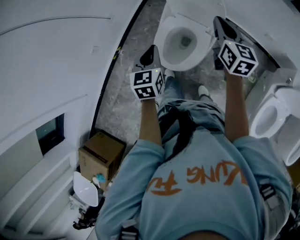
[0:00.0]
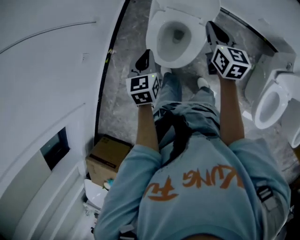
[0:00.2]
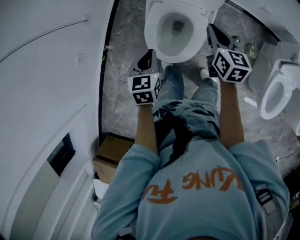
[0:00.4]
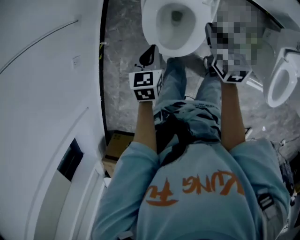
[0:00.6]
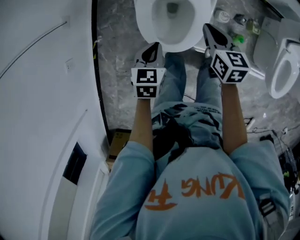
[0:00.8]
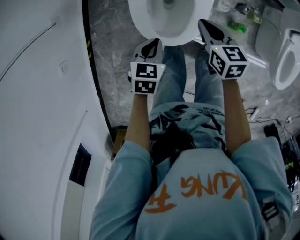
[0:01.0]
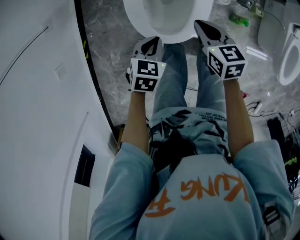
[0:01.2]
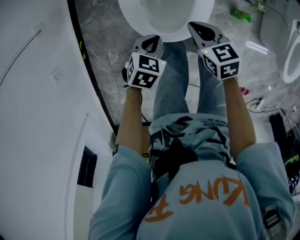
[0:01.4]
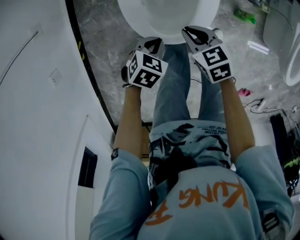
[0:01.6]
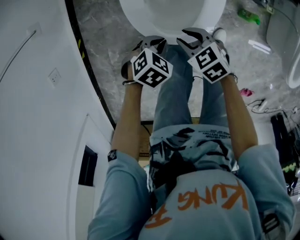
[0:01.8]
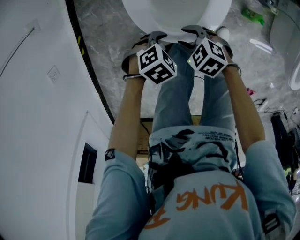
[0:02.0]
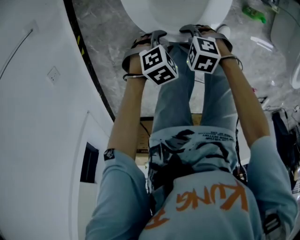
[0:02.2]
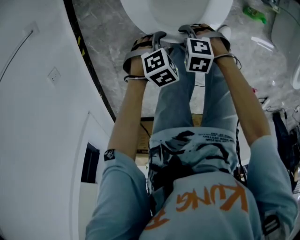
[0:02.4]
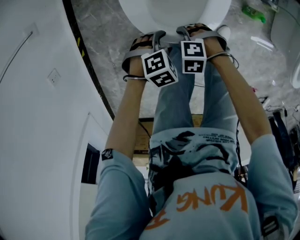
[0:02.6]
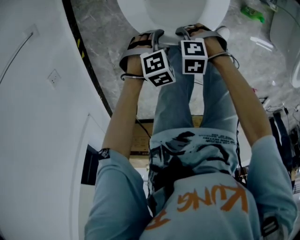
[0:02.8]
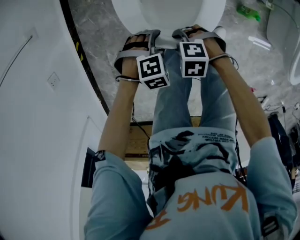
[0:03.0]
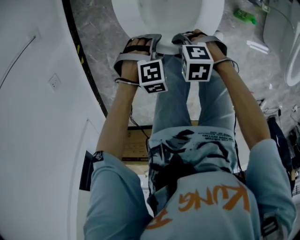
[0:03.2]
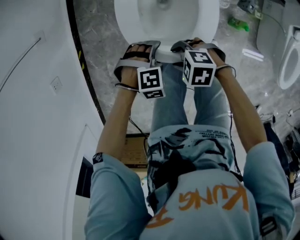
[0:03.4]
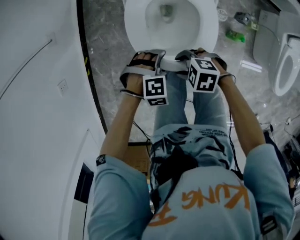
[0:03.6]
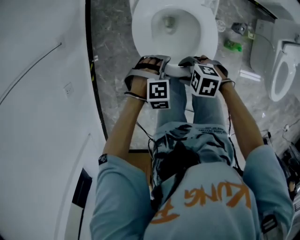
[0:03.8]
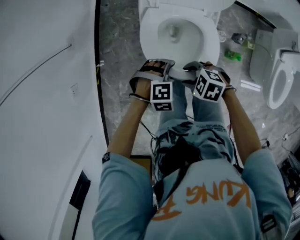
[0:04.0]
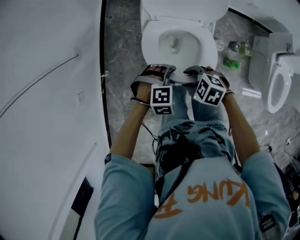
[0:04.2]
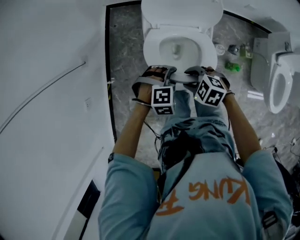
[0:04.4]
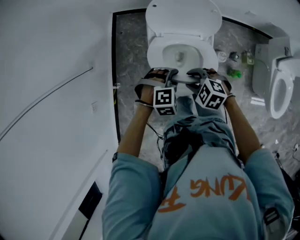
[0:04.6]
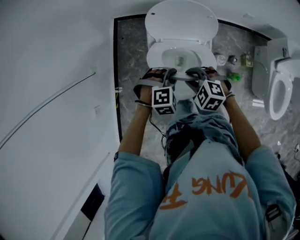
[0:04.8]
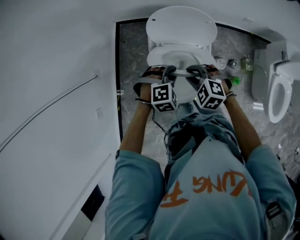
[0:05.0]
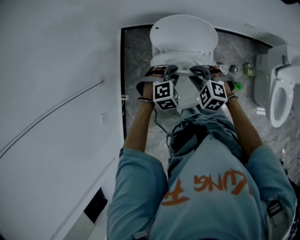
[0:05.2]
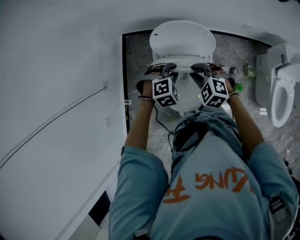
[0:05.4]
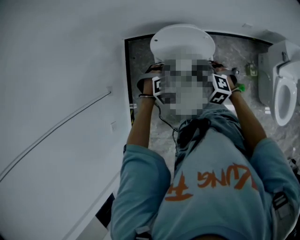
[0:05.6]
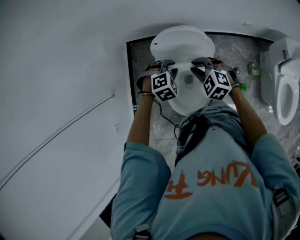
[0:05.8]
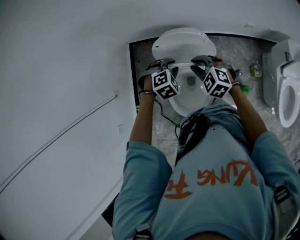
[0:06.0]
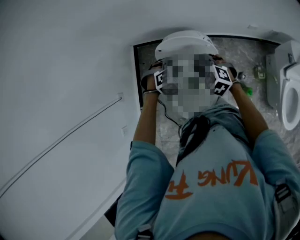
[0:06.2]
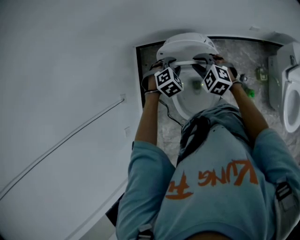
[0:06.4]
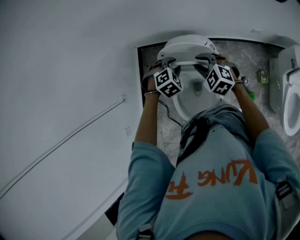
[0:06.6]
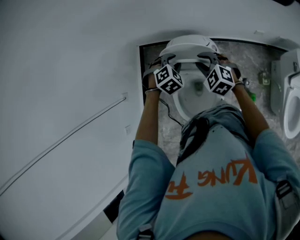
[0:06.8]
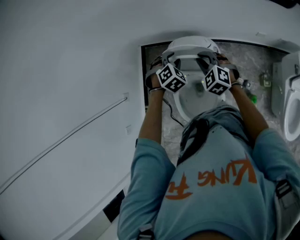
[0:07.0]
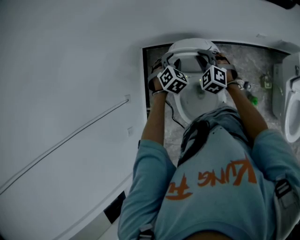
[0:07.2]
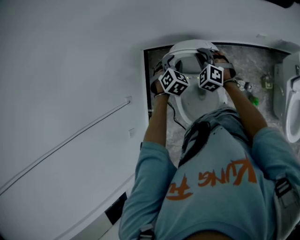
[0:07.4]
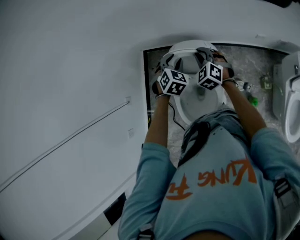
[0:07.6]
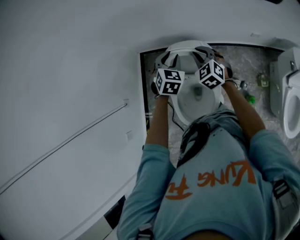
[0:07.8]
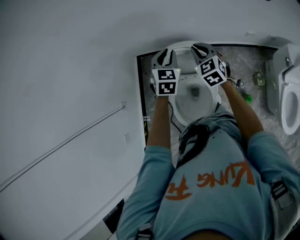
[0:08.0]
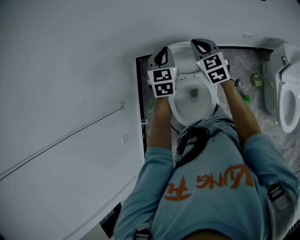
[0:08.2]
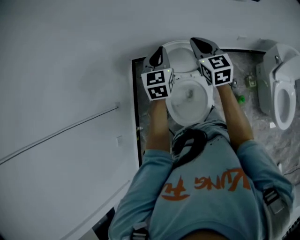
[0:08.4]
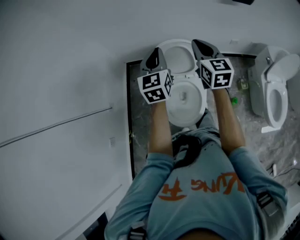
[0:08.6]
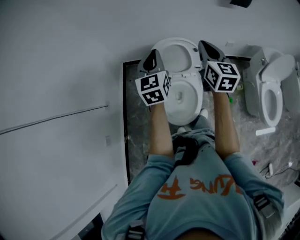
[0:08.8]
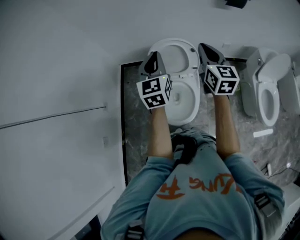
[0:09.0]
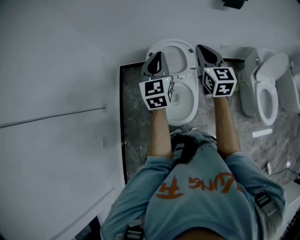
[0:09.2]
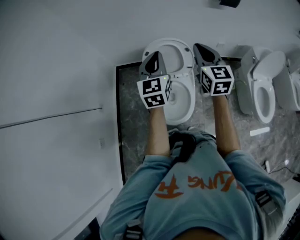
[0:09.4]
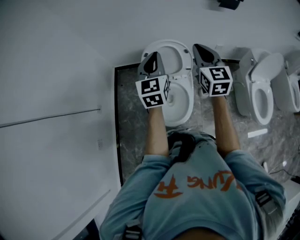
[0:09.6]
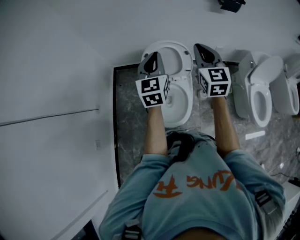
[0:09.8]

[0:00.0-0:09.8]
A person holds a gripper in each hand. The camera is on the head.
0:00.0 to 0:01.4: The grippers both shift downward by roughly 40 cm. The left gripper changes its angle by approximately 60 degrees. The right gripper tips its fingers downward by roughly 30 degrees.
0:01.4 to 0:02.8: The right gripper is displaced downward by some 15 cm, rotates some 70 degrees, and opens its fingers. The left gripper moves downward, some 10 cm, changes its angle by about 40 degrees, and opens.
0:02.8 to 0:04.2: The two grippers go roughly 25 cm upward. The left gripper swivels roughly 20 degrees. Meanwhile the right gripper swivels roughly 20 degrees.
0:04.2 to 0:05.6: The right gripper changes place by roughly 30 cm, changes its angle by roughly 30 degrees, and closes up. The left gripper ends up about 25 cm from where it was.
0:05.6 to 0:07.0: Both grippers travel together forward, about 15 cm. The left gripper turns by roughly 20 degrees.
0:07.0 to 0:08.4: The two grippers go about 20 cm upward. The left gripper tilts its fingers approximately 40 degrees upward, and closes its fingers, while the right gripper turns by approximately 50 degrees.
0:08.4 to 0:09.8: The grippers both shift backward and upward by some 15 cm.

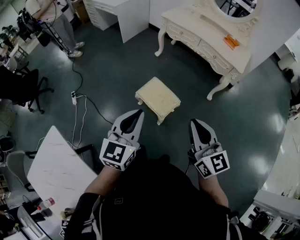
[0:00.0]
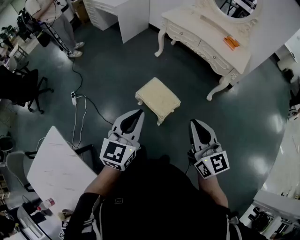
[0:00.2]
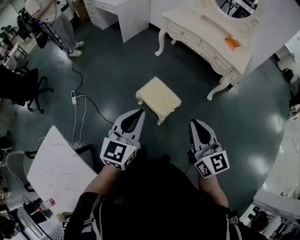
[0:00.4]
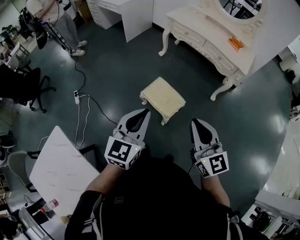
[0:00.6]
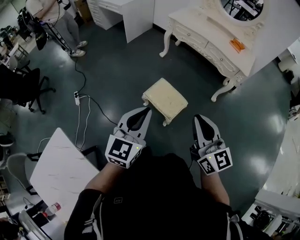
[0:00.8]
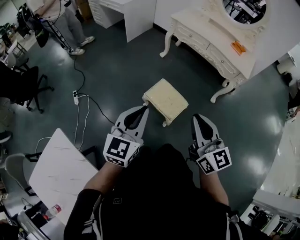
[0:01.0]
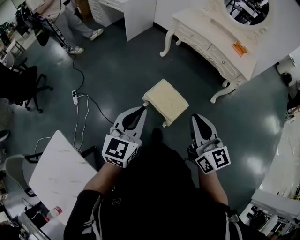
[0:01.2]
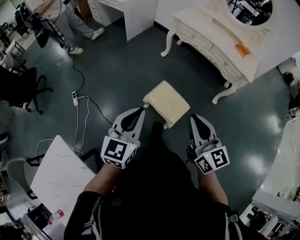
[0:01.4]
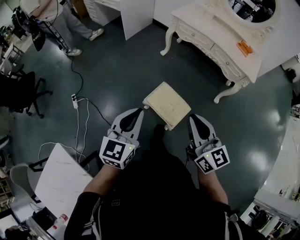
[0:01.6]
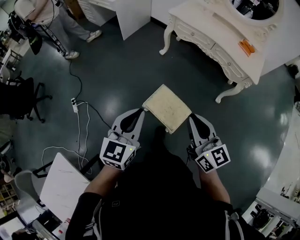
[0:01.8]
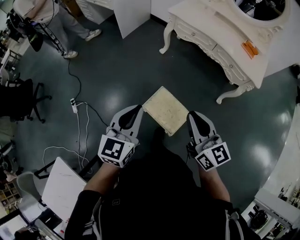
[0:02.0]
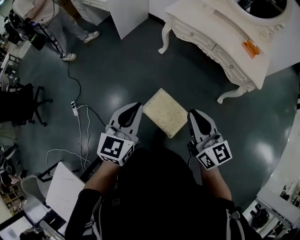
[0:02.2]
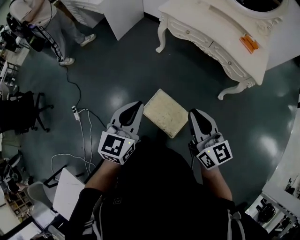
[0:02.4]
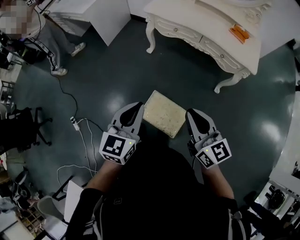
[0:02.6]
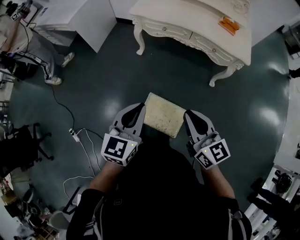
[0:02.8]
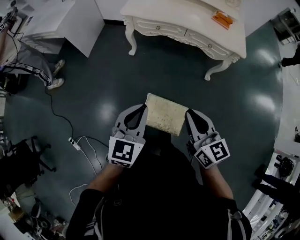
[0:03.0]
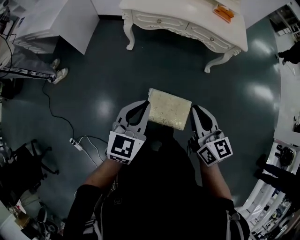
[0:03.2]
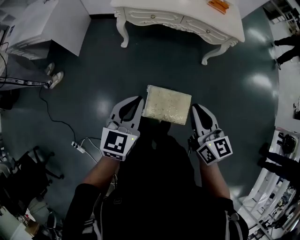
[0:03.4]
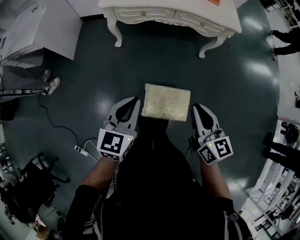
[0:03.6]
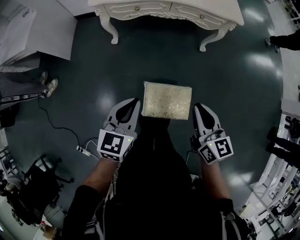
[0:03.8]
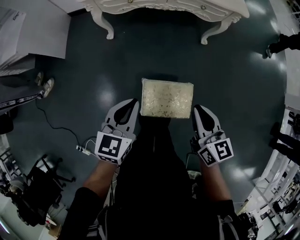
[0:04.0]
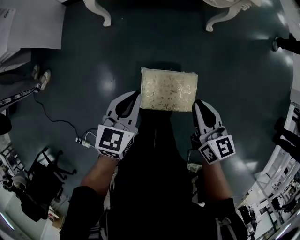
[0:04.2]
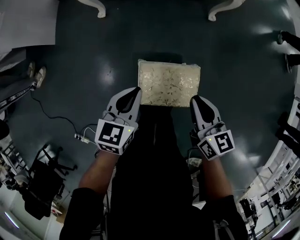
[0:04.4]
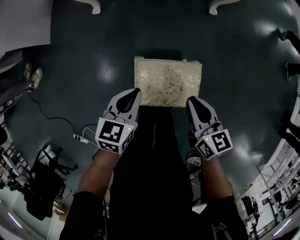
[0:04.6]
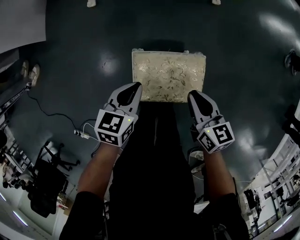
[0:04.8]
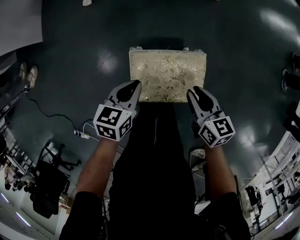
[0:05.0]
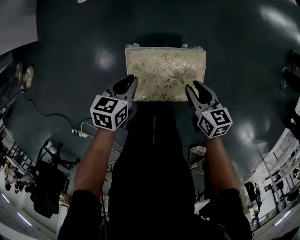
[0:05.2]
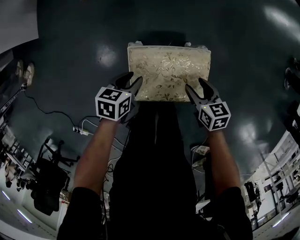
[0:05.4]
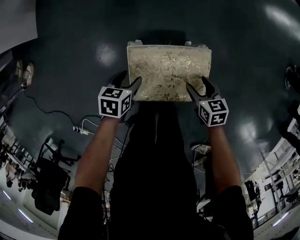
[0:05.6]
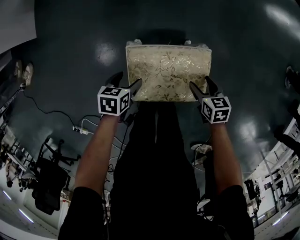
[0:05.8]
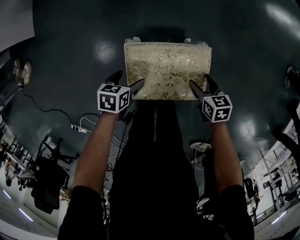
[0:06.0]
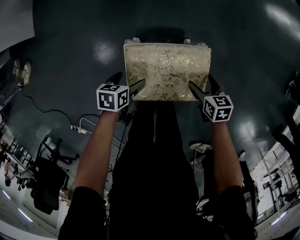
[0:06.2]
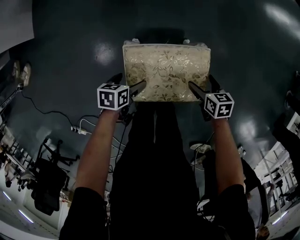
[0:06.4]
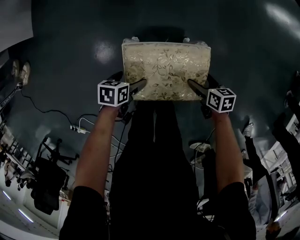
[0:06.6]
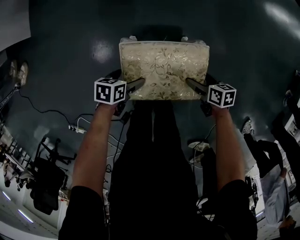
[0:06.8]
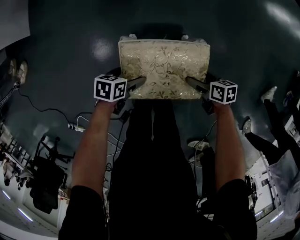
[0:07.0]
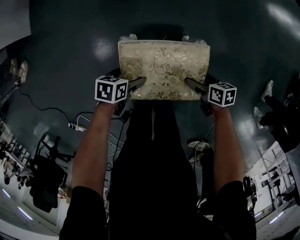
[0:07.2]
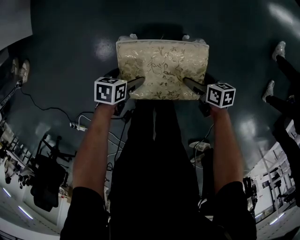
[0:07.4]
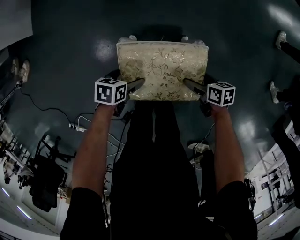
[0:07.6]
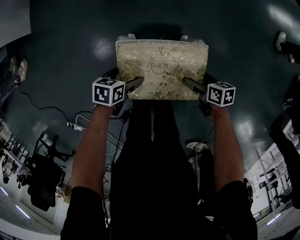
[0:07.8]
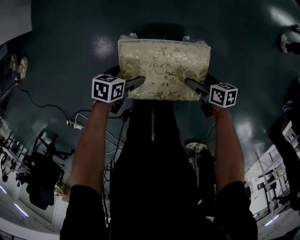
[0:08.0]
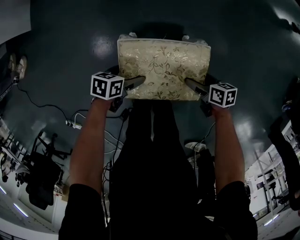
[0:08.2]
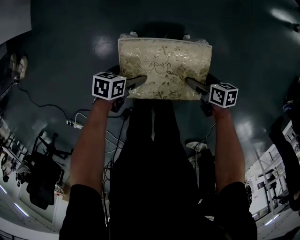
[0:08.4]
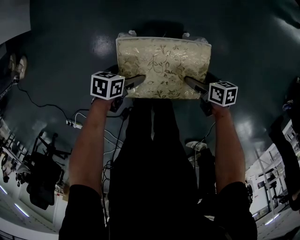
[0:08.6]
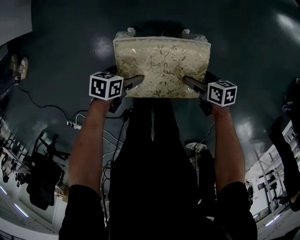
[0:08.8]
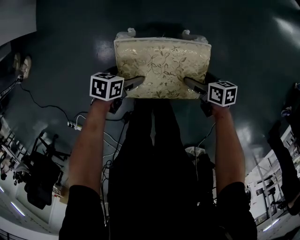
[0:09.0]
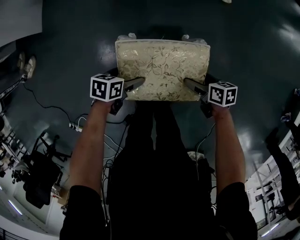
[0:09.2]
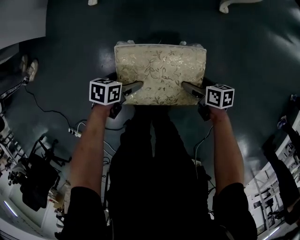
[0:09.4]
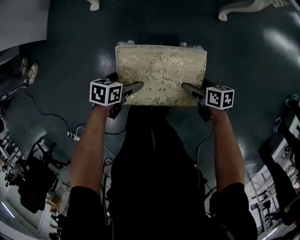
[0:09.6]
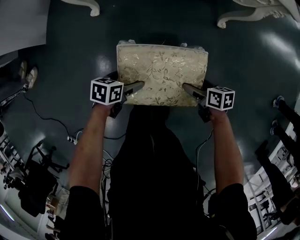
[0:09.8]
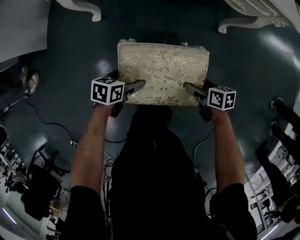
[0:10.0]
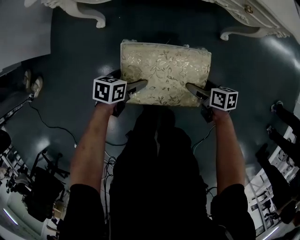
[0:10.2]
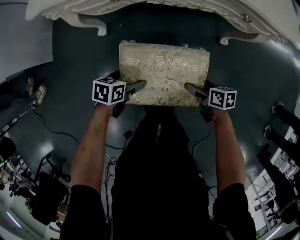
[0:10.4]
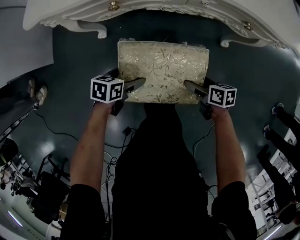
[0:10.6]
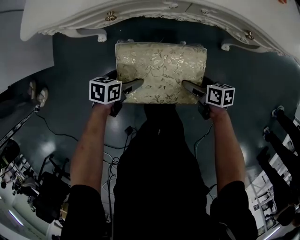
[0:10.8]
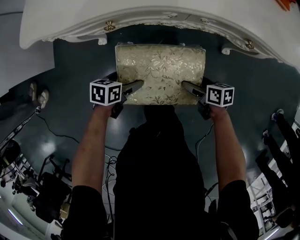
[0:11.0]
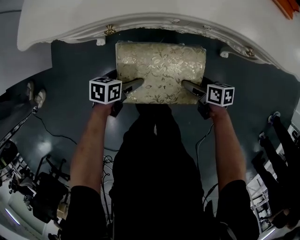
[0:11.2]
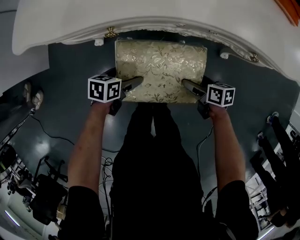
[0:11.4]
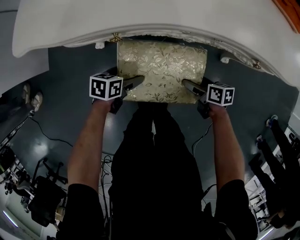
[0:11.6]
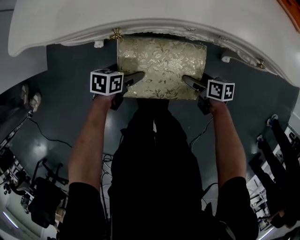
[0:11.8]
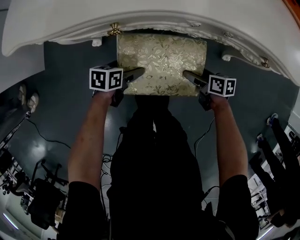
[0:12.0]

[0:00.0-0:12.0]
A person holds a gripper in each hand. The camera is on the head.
0:00.0 to 0:01.6: The grippers both shift forward and to the left by about 15 cm.
0:01.6 to 0:03.0: Both grippers move forward, about 25 cm. The left gripper swivels approximately 30 degrees. Meanwhile the right gripper turns by about 30 degrees.
0:03.0 to 0:04.4: Both grippers move downward, some 30 cm. The left gripper rotates about 30 degrees. Meanwhile the right gripper swivels roughly 30 degrees.
0:04.4 to 0:06.0: Both grippers travel together downward, some 30 cm. The right gripper angles its fingers downward, by approximately 30 degrees, and opens. Meanwhile the left gripper rotates approximately 40 degrees, and opens its fingers.
0:06.0 to 0:07.6: The right gripper changes its angle by roughly 20 degrees.
0:07.6 to 0:12.0: The grippers move only a little.

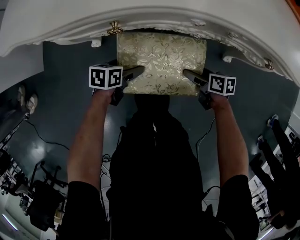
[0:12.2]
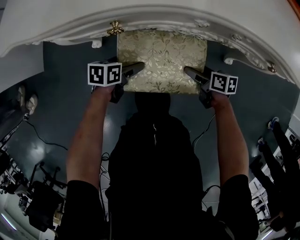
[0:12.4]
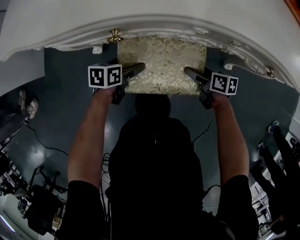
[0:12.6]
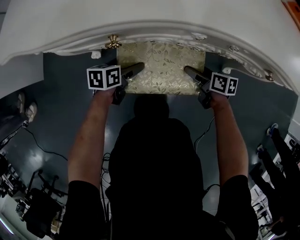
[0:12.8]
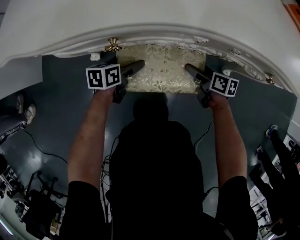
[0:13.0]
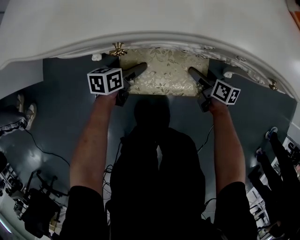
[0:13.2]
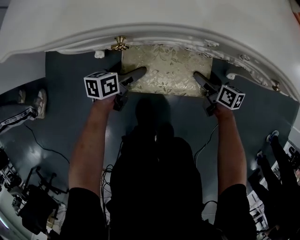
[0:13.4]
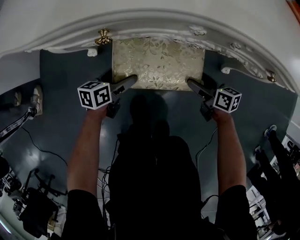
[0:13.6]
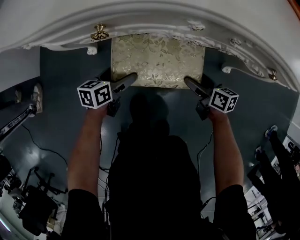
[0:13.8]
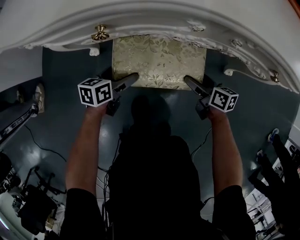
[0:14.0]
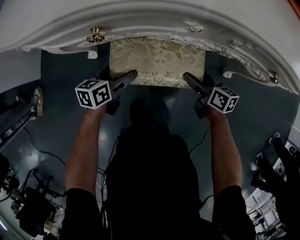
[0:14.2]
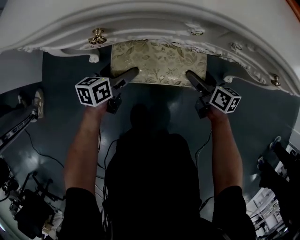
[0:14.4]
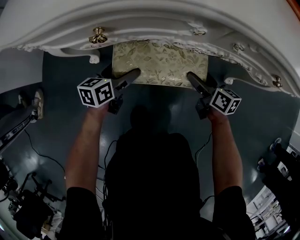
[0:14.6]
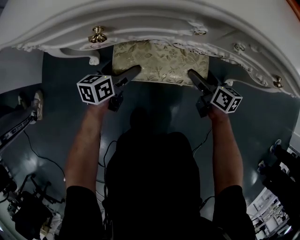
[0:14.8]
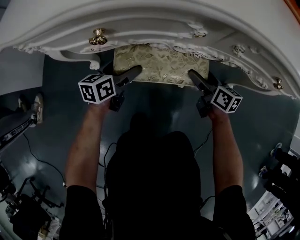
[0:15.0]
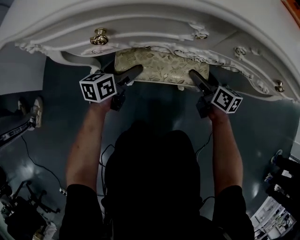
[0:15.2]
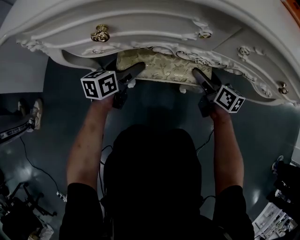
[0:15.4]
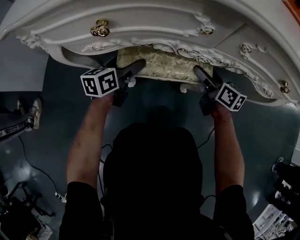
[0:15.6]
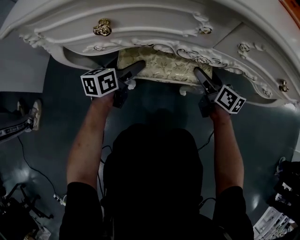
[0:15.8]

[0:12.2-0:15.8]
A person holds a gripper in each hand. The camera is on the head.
0:12.2 to 0:14.0: The left gripper moves approximately 10 cm forward and comes back.
0:14.0 to 0:15.8: Both grippers travel together forward, some 10 cm. The left gripper turns by roughly 20 degrees. Meanwhile the right gripper swivels roughly 20 degrees.
